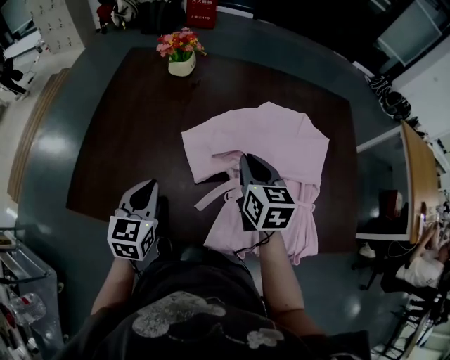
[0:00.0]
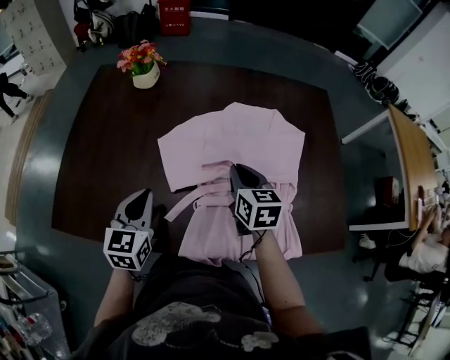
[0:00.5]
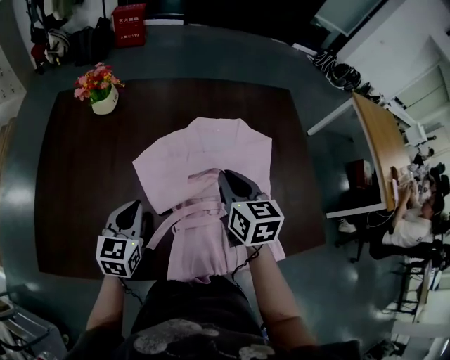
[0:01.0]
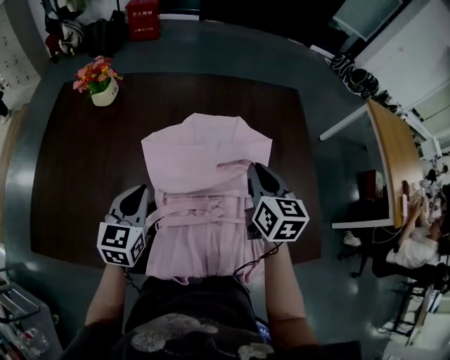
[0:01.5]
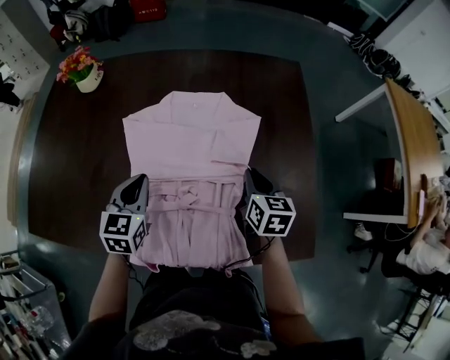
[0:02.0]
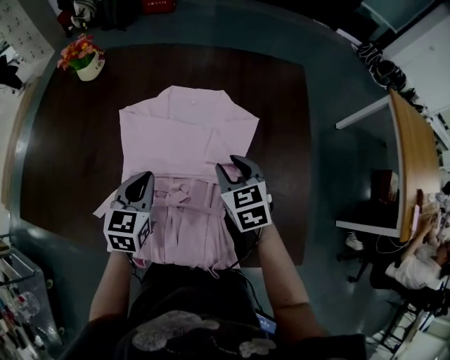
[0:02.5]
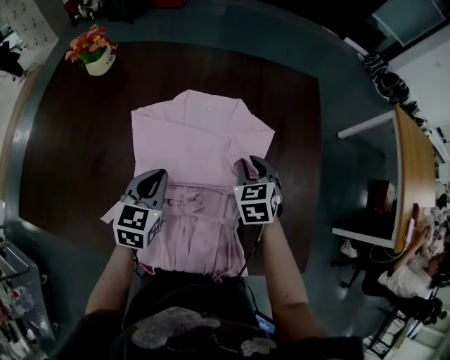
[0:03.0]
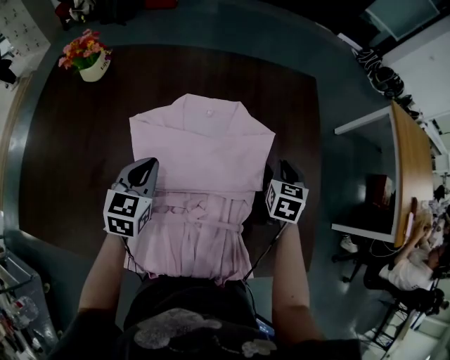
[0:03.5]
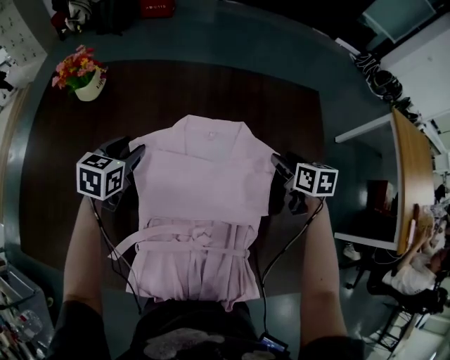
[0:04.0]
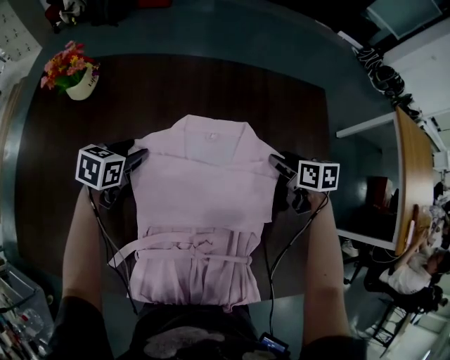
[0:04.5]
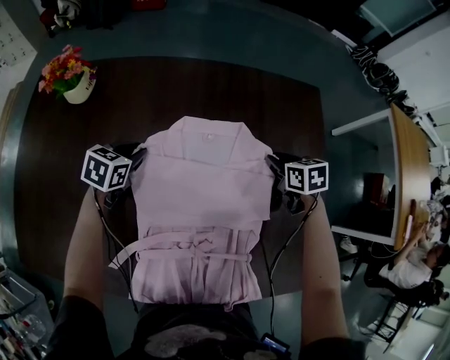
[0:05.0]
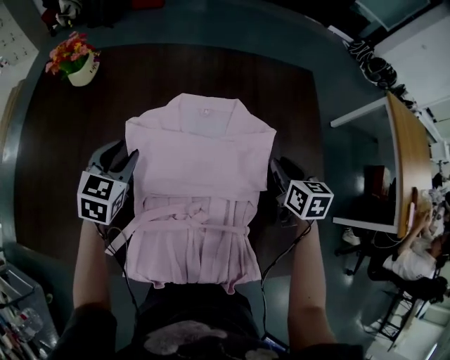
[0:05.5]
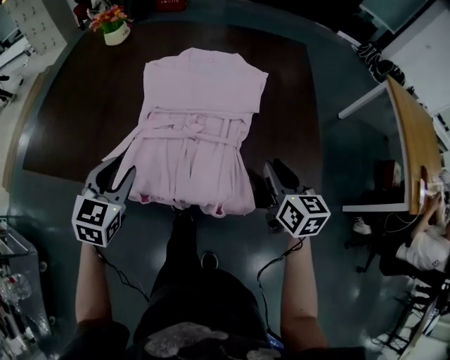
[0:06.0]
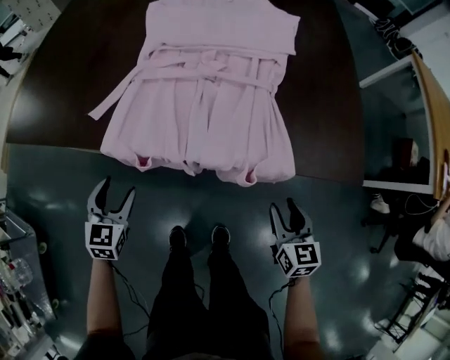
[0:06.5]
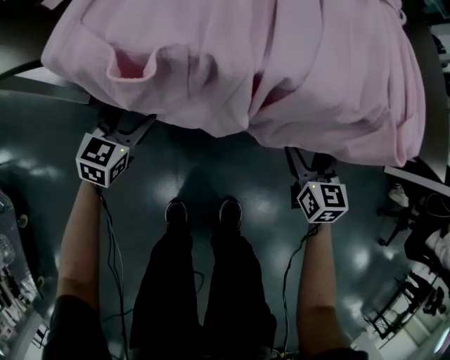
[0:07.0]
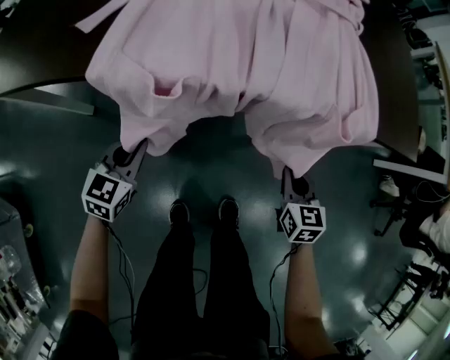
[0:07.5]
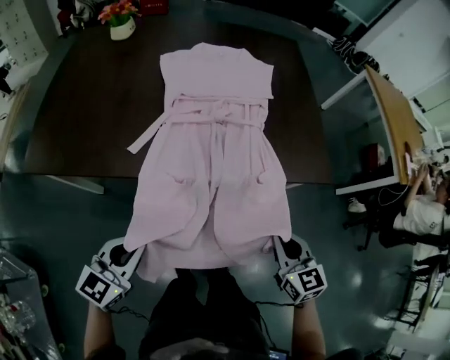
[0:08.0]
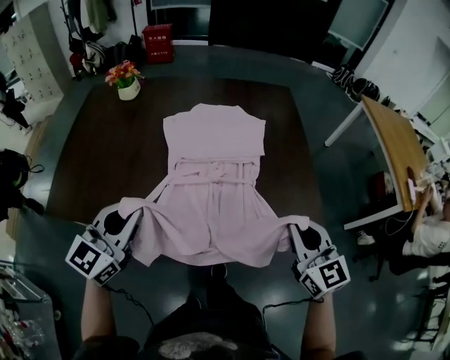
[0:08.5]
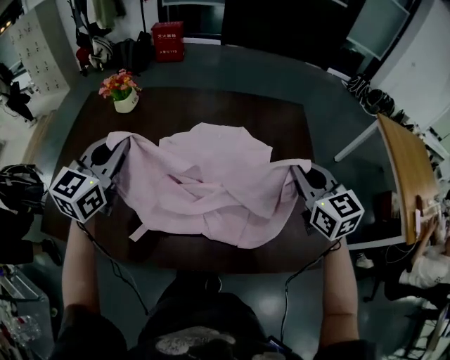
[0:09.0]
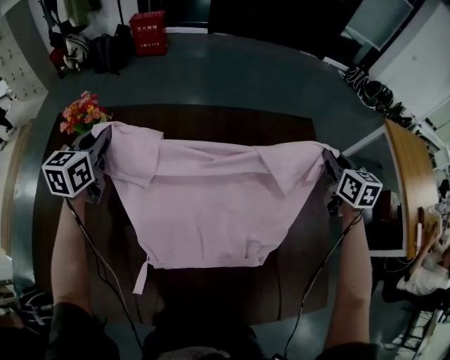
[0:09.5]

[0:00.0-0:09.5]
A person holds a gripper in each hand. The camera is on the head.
0:00.0 to 0:02.0: Both grippers move to the right, some 30 cm.
0:02.0 to 0:04.0: The left gripper heads forward and to the left, covering approximately 20 cm, and opens its fingers. Meanwhile the right gripper travels forward by about 20 cm, and opens its fingers.
0:04.0 to 0:05.5: The two grippers go about 10 cm backward. The right gripper closes.
0:05.5 to 0:07.5: The pair of grippers is taken backward, roughly 50 cm. The grippers both shift downward by approximately 30 cm. The left gripper closes, while the right gripper opens, then closes once more.
0:07.5 to 0:09.5: The pair of grippers is taken forward, approximately 60 cm. Both grippers move upward, roughly 50 cm.

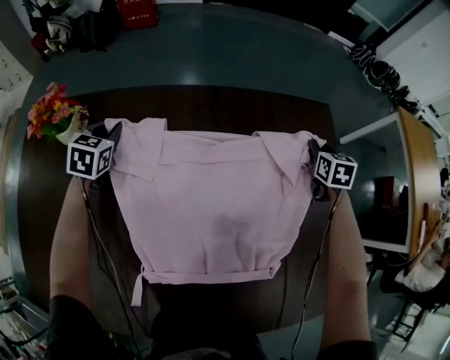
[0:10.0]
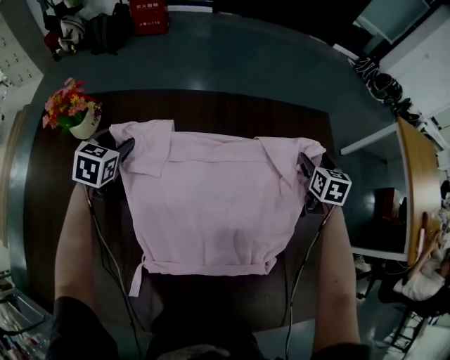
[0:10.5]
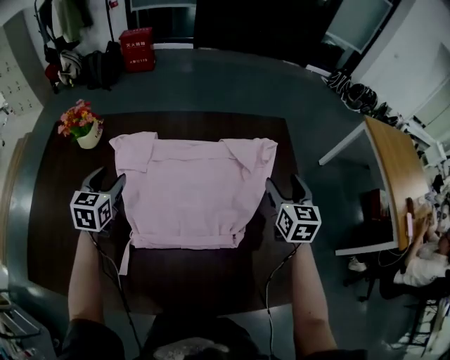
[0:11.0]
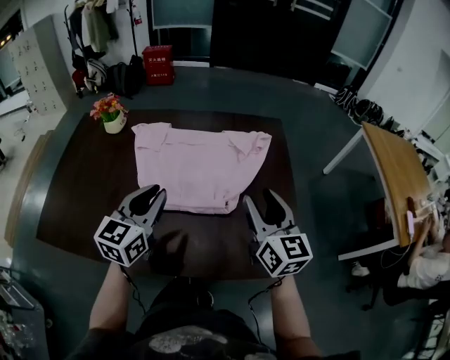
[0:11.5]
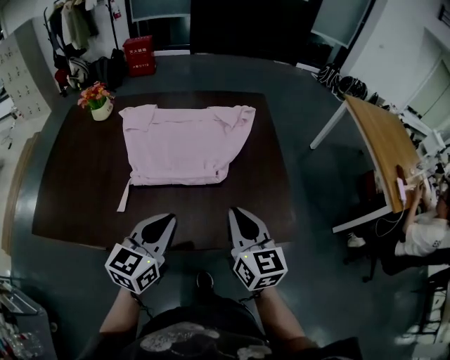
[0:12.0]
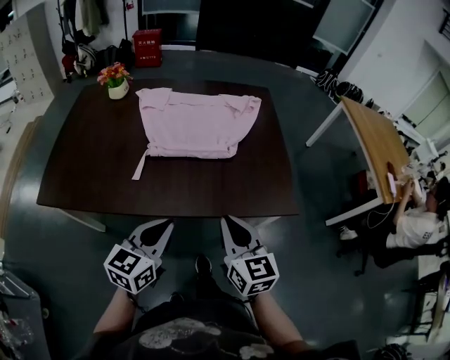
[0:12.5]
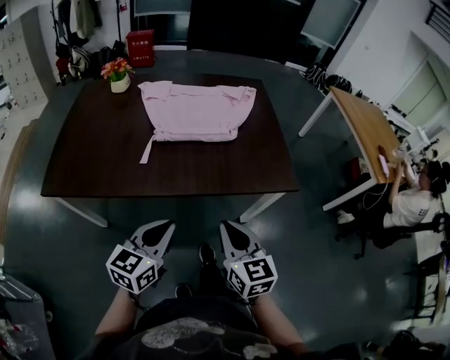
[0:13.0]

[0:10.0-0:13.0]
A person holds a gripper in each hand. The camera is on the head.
0:10.0 to 0:11.5: The right gripper goes about 50 cm backward and upward, points its fingers approximately 40 degrees further upward, and opens up; the left gripper goes approximately 50 cm backward, to the right and upward, angles its fingers upward, by some 30 degrees, and opens and closes again.
0:11.5 to 0:13.0: Both grippers travel together backward, some 35 cm. The right gripper closes its fingers.

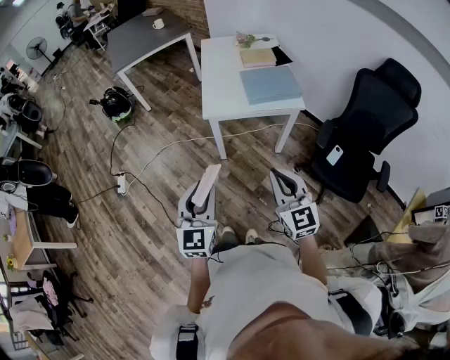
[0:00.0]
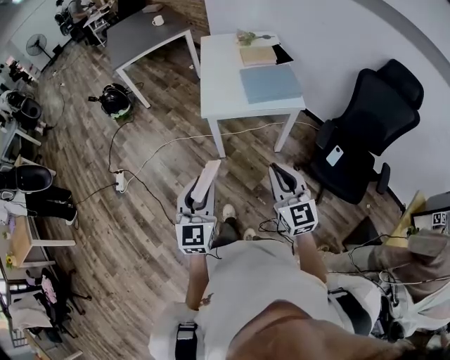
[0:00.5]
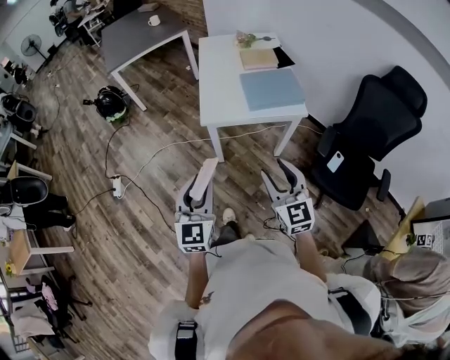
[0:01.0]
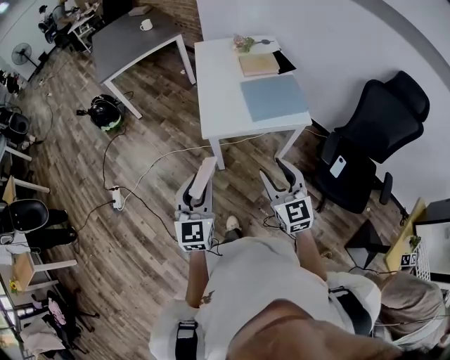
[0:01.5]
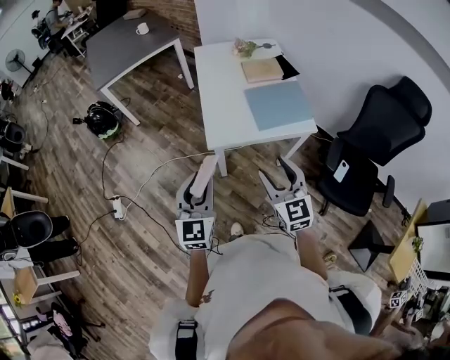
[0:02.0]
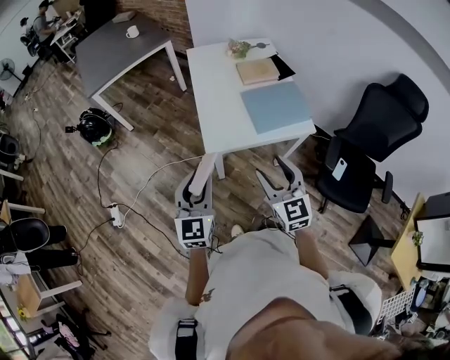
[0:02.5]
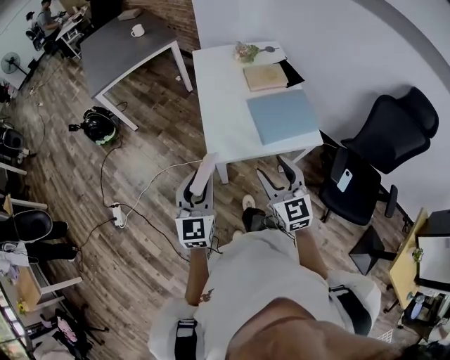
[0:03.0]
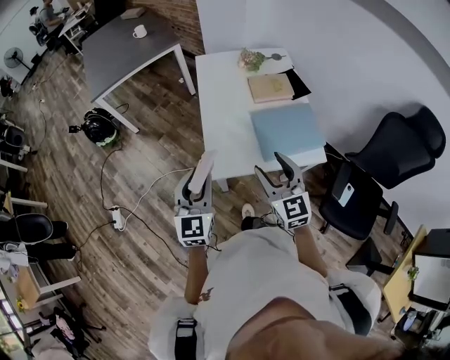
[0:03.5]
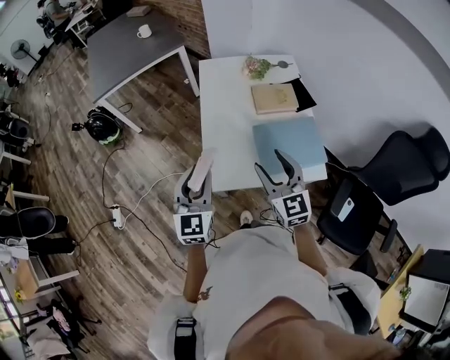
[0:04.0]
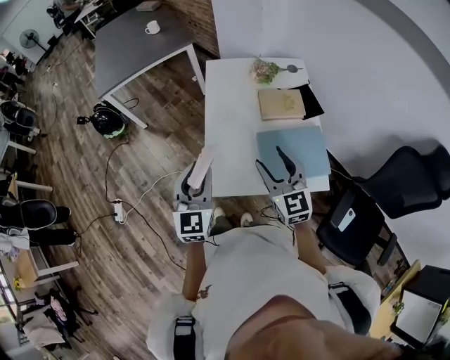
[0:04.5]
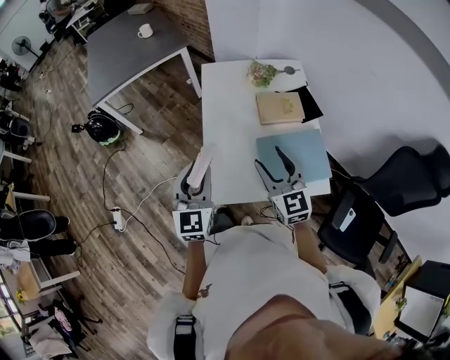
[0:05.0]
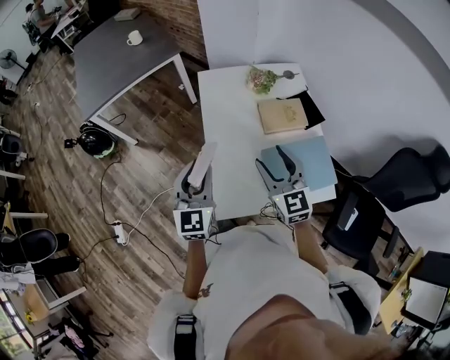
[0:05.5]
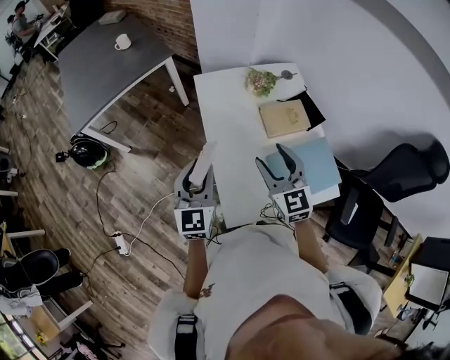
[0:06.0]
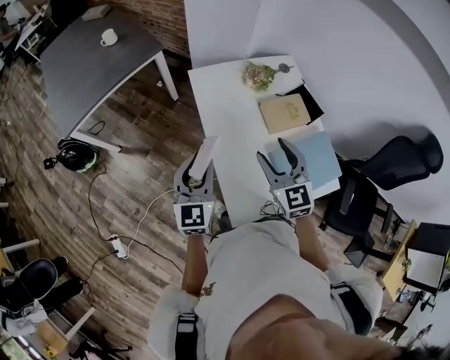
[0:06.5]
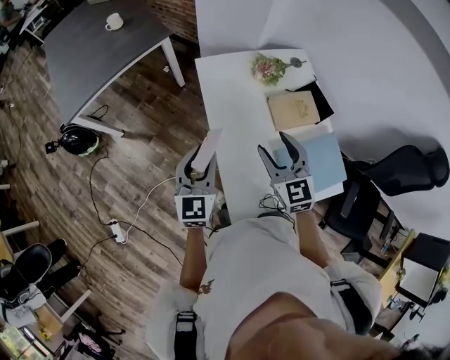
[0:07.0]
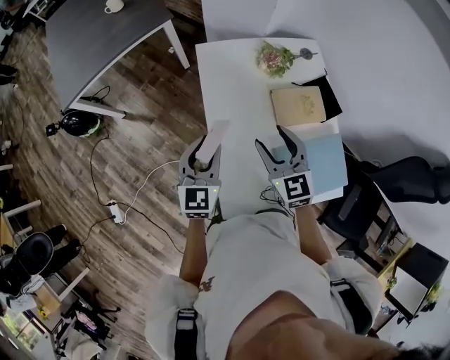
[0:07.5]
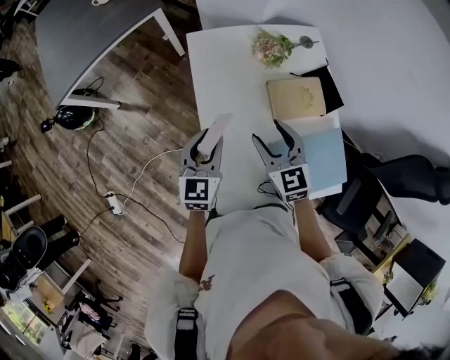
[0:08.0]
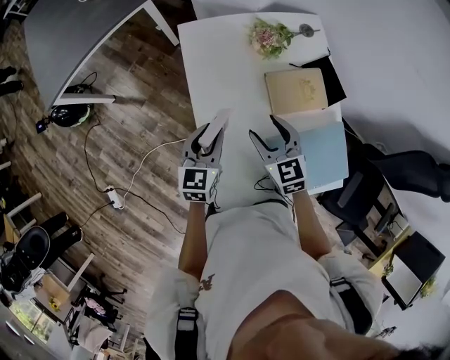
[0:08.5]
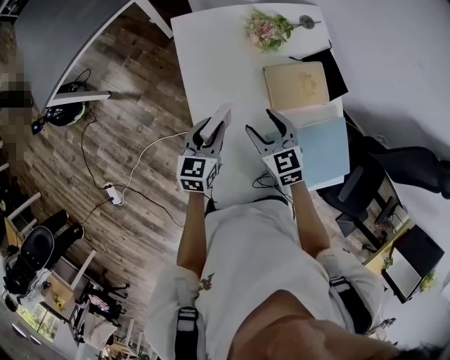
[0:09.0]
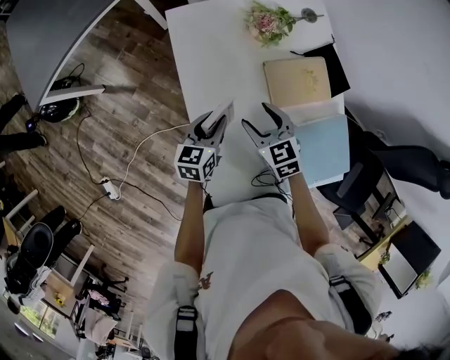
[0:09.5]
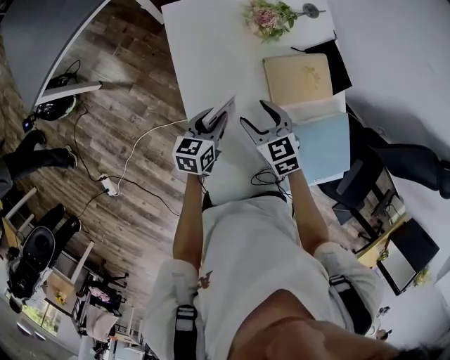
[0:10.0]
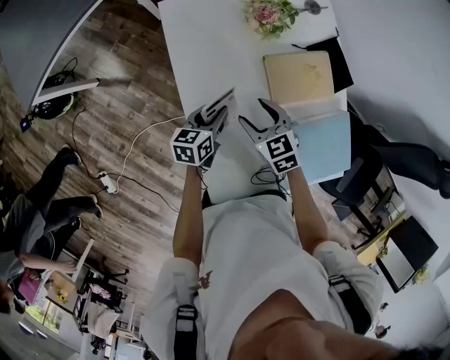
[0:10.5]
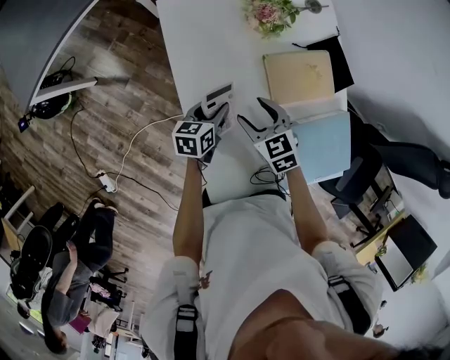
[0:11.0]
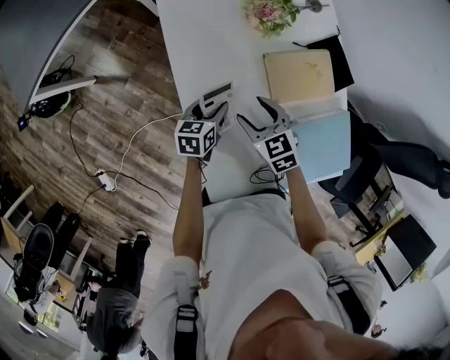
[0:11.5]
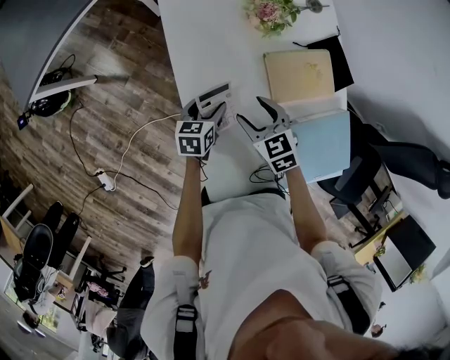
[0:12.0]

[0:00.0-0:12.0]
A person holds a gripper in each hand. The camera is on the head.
0:00.0 to 0:02.0: Both grippers travel together forward, about 25 cm. The right gripper opens up.
0:02.0 to 0:04.0: Both grippers travel together forward, about 25 cm.
0:04.0 to 0:06.0: Both grippers move forward, roughly 20 cm.
0:06.0 to 0:08.0: The right gripper goes about 15 cm forward and downward, while the left gripper travels downward, forward and to the right by about 20 cm.
0:08.0 to 0:10.0: Both grippers move downward, about 15 cm. The left gripper rotates approximately 30 degrees.
0:10.0 to 0:12.0: The left gripper is displaced downward by about 5 cm, and opens.

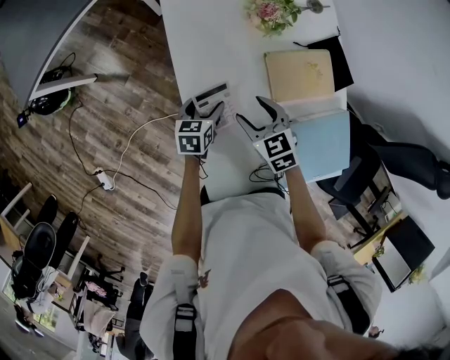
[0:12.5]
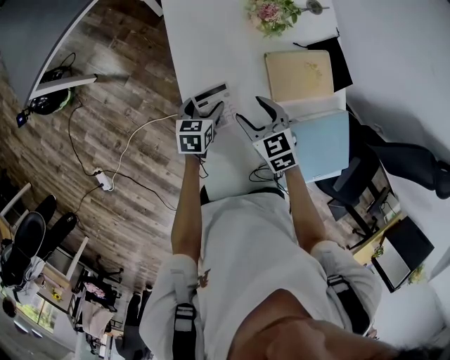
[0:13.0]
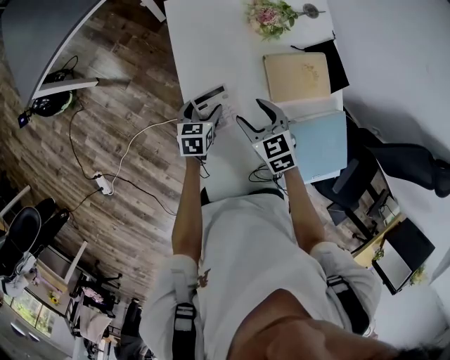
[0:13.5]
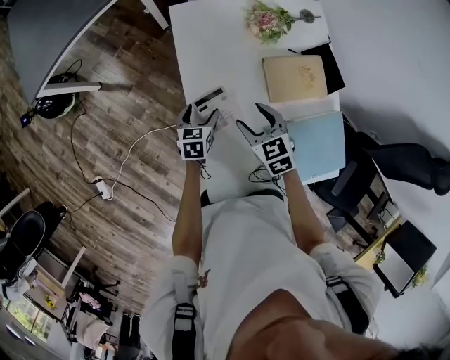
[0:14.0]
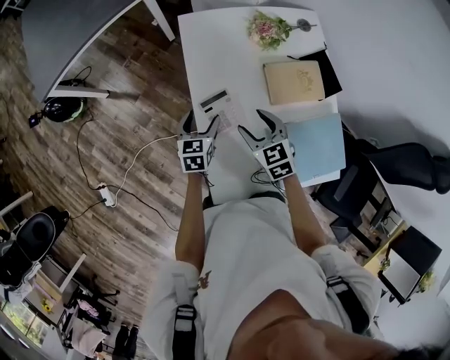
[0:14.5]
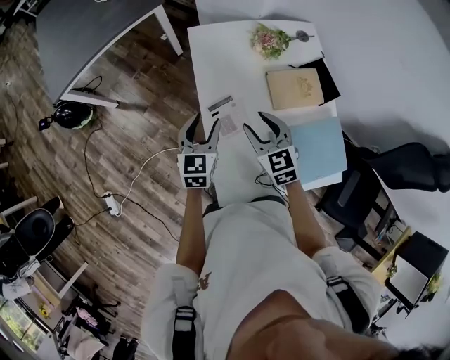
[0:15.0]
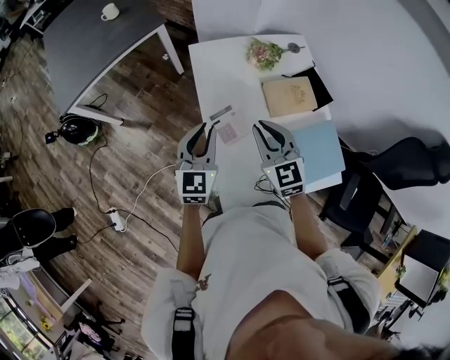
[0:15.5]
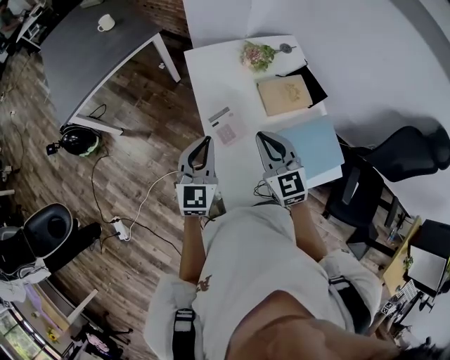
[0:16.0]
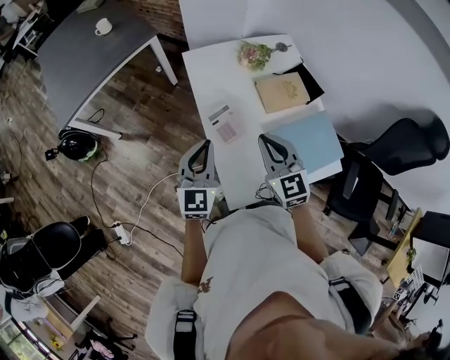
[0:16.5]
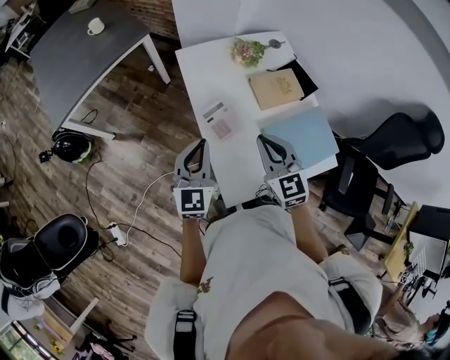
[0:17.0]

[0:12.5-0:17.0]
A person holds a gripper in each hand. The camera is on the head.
0:12.5 to 0:14.5: The two grippers go some 5 cm upward.
0:14.5 to 0:17.0: Both grippers travel together upward and backward, approximately 25 cm. The right gripper rotates approximately 30 degrees, and closes up; the left gripper changes its angle by some 40 degrees, and closes.
